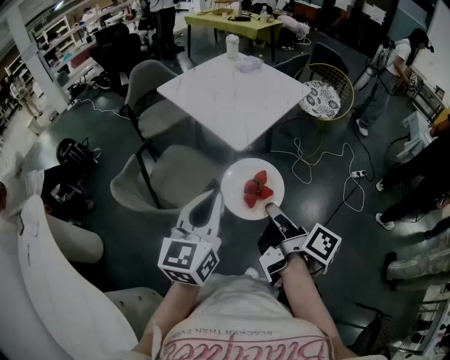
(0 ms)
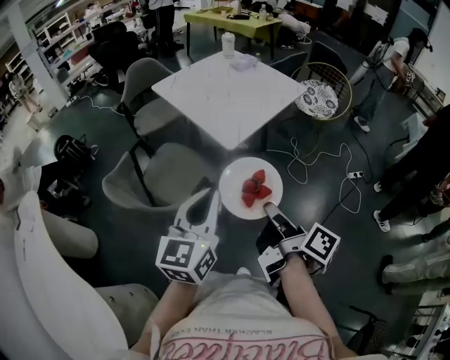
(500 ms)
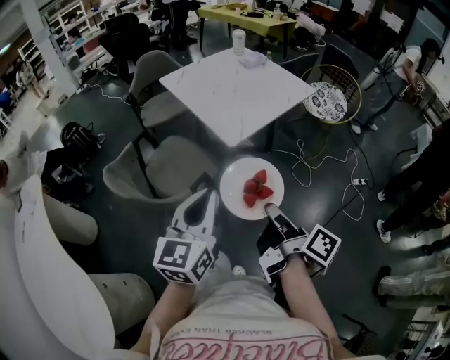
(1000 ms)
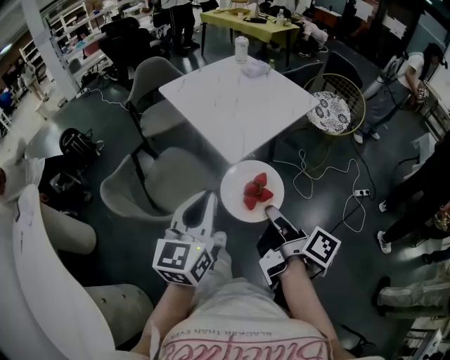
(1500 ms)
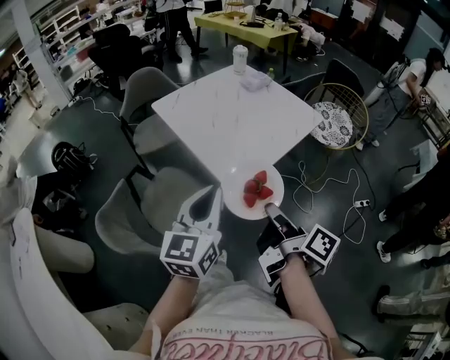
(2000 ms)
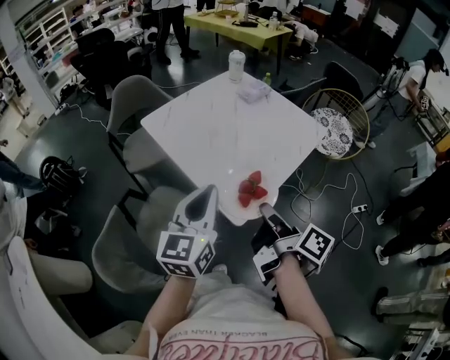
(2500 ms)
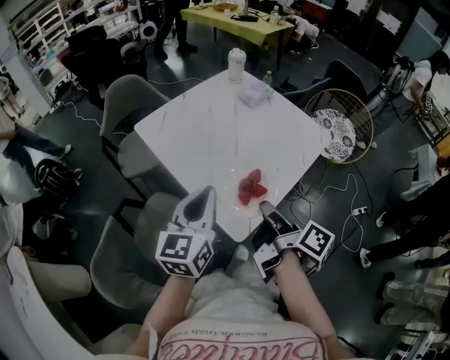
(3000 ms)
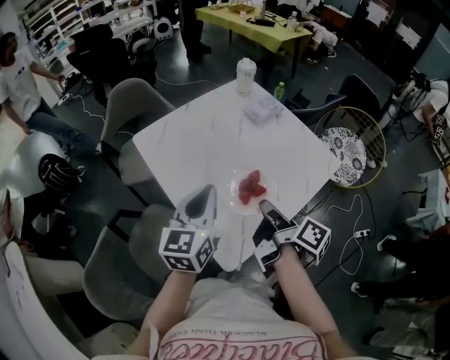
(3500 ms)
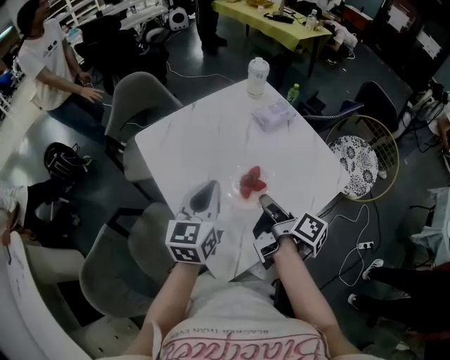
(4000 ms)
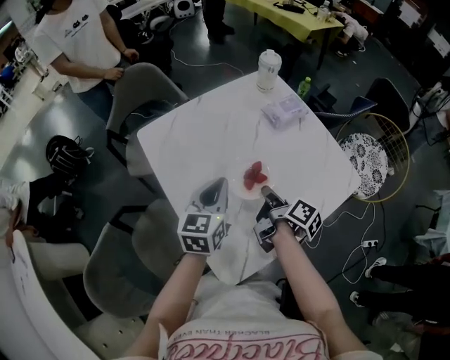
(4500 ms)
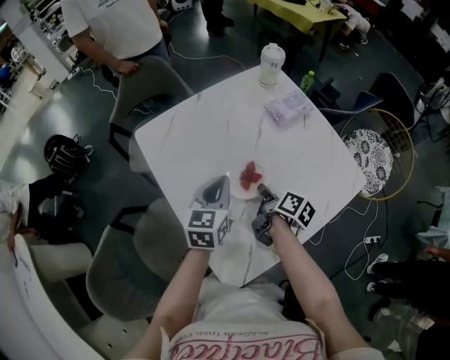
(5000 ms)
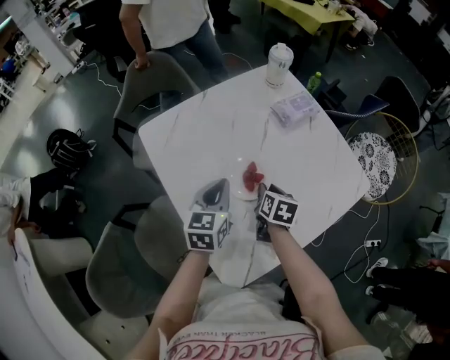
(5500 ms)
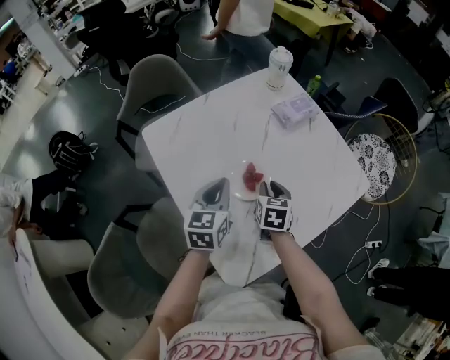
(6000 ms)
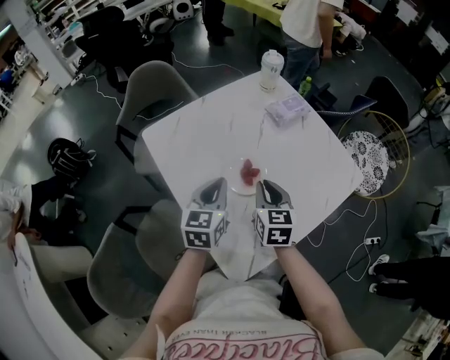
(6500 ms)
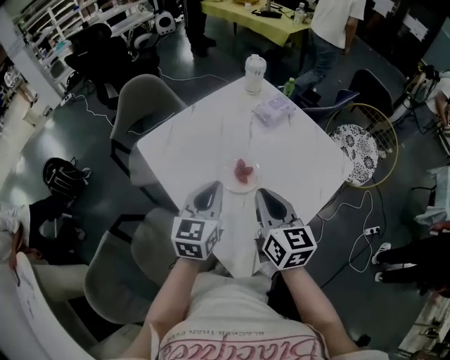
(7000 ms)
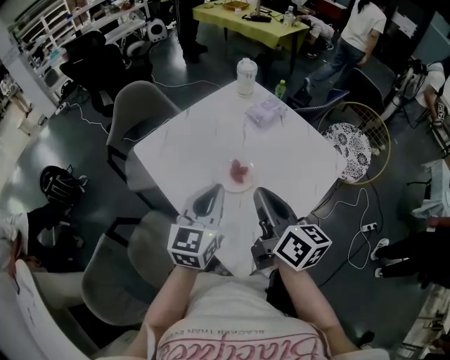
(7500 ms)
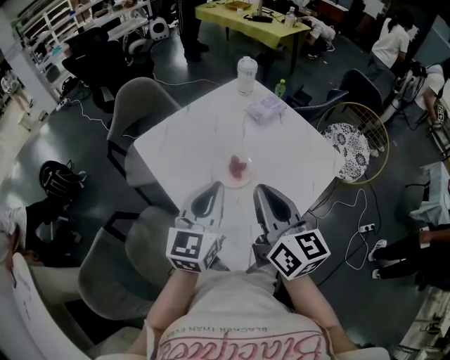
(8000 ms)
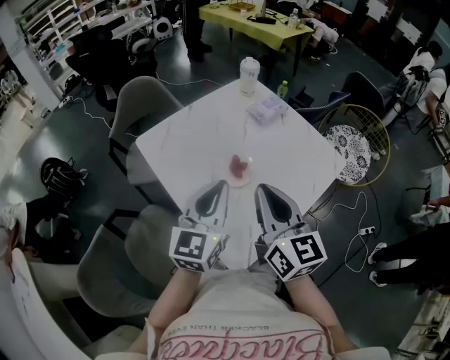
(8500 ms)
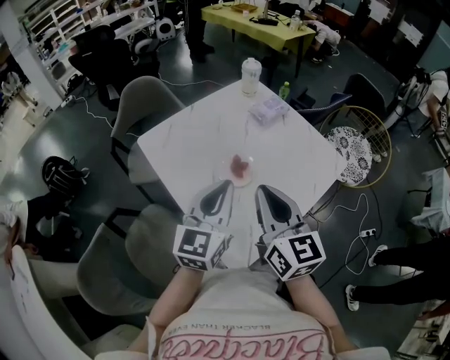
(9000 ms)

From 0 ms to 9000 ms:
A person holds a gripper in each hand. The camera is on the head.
From 0 ms to 2000 ms: Both grippers move forward, some 20 cm.
From 2000 ms to 4500 ms: Both grippers are carried forward, some 50 cm.
From 4500 ms to 7000 ms: The left gripper shifts by roughly 5 cm. The right gripper shifts roughly 15 cm upward, backward and to the left, and twists about 60 degrees counterclockwise, seen from behind.
From 7000 ms to 9000 ms: Both grippers travel together upward and backward, about 10 cm.

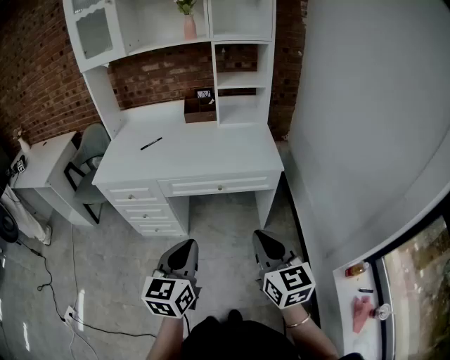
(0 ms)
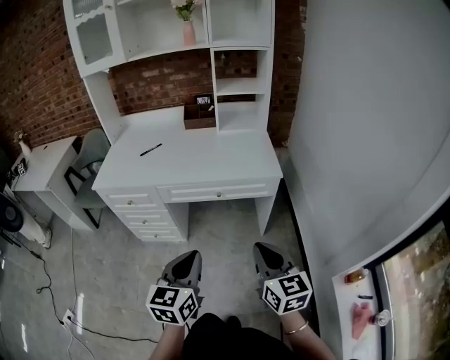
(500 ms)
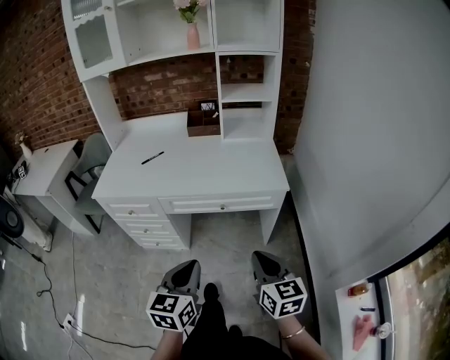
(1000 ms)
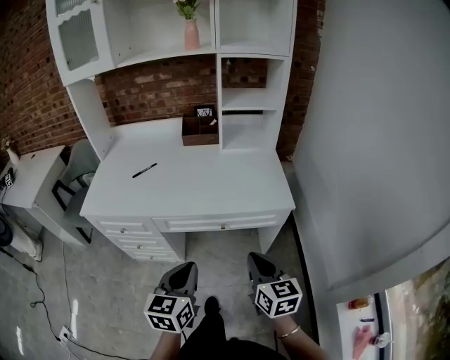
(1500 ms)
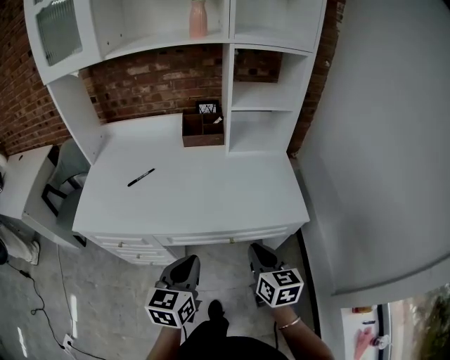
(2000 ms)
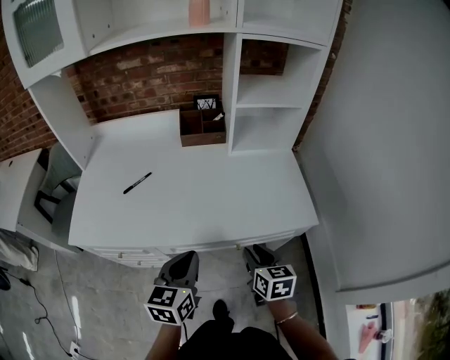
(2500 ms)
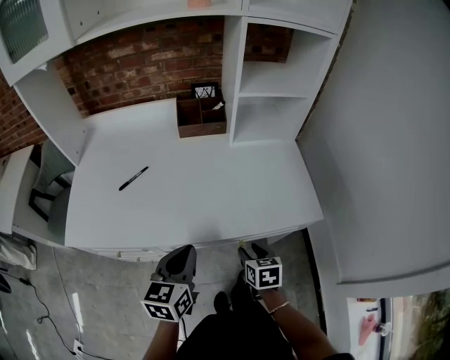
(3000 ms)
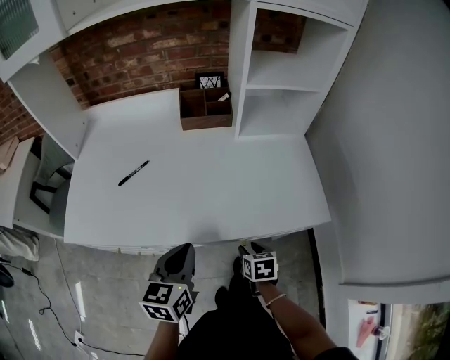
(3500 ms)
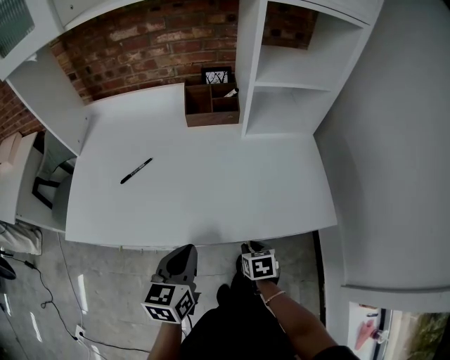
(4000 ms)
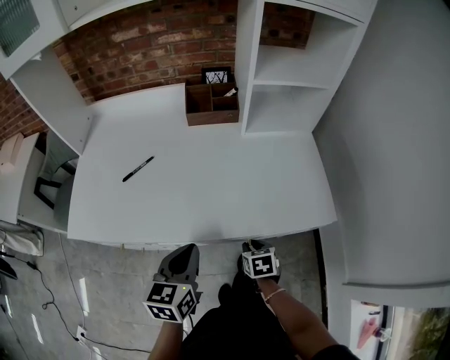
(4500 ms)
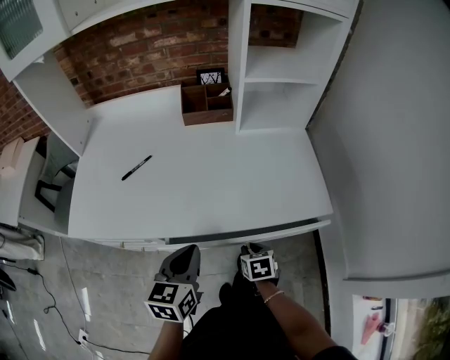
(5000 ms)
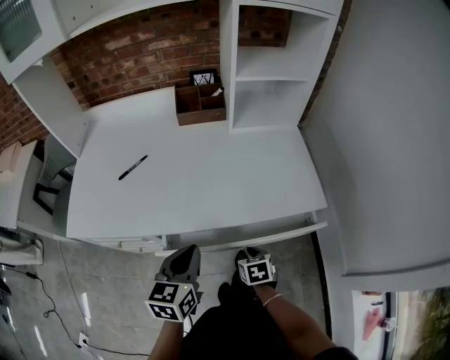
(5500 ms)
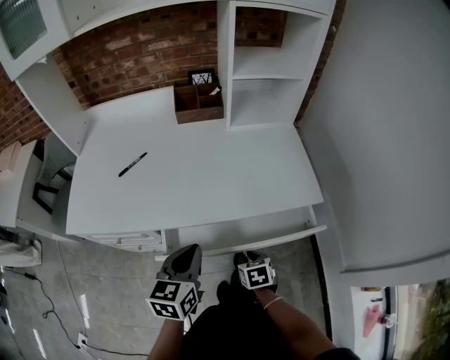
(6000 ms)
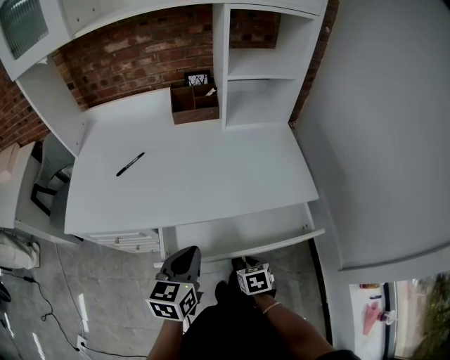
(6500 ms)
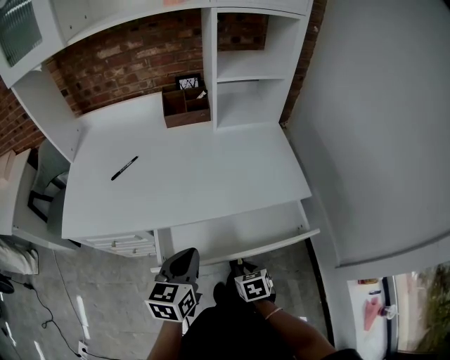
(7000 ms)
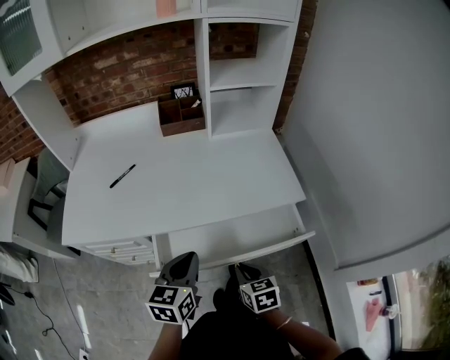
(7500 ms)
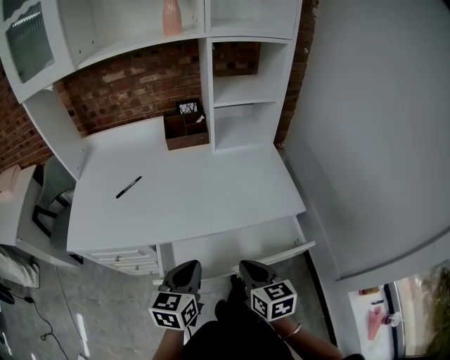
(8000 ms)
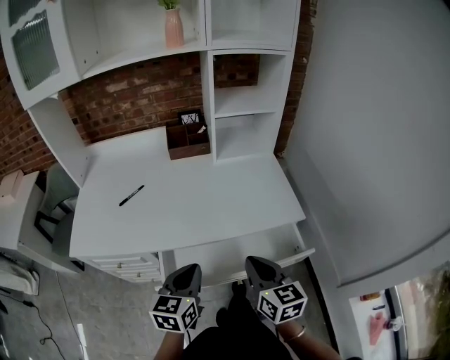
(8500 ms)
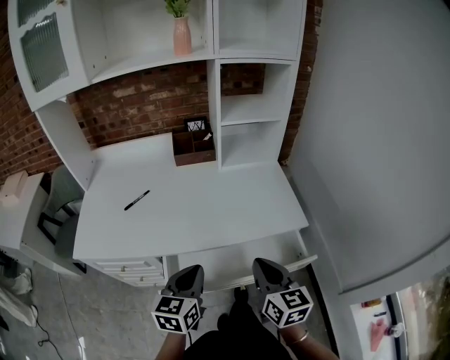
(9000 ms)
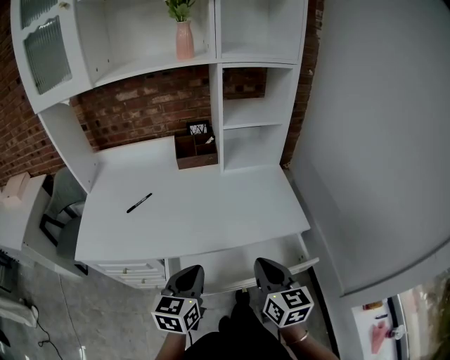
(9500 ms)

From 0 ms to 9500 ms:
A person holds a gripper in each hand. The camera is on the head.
From 0 ms to 2000 ms: Both grippers move forward, roughly 30 cm.
From 2000 ms to 4000 ms: The right gripper is displaced downward and forward by approximately 25 cm, and tips its fingers downward by approximately 40 degrees, while the left gripper travels forward, downward and to the left by some 15 cm.
From 4000 ms to 5500 ms: The two grippers go approximately 5 cm backward.
From 5500 ms to 7500 ms: The left gripper moves approximately 5 cm. The right gripper heads upward and backward, covering approximately 15 cm.
From 7500 ms to 9500 ms: The right gripper shifts about 20 cm upward, and points its fingers some 30 degrees further upward.

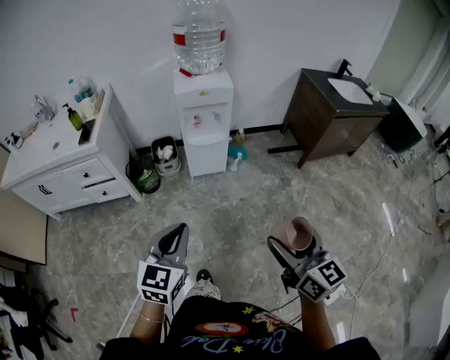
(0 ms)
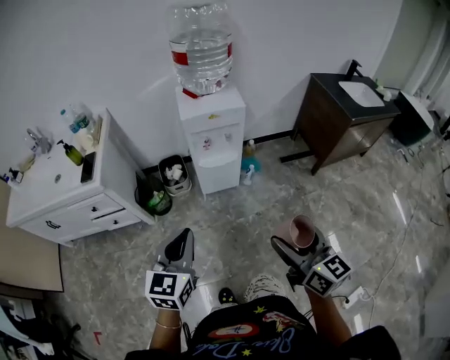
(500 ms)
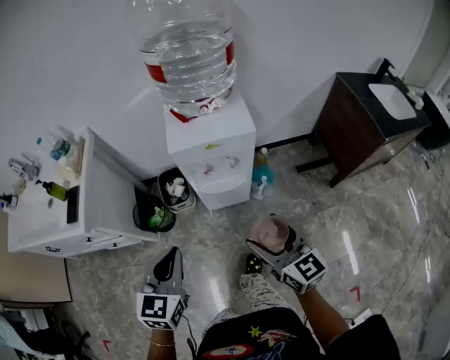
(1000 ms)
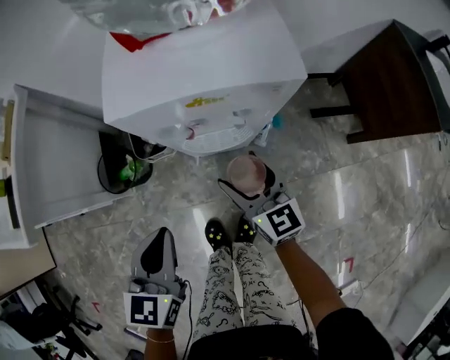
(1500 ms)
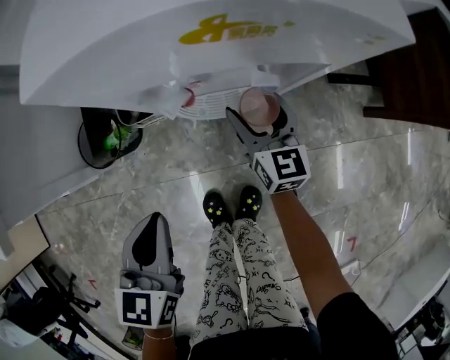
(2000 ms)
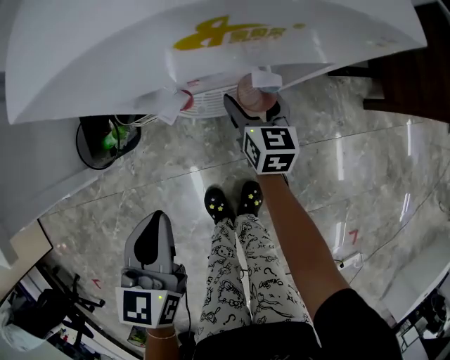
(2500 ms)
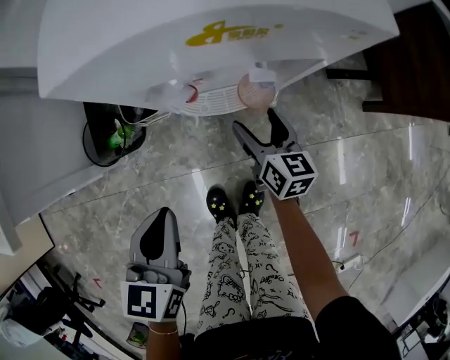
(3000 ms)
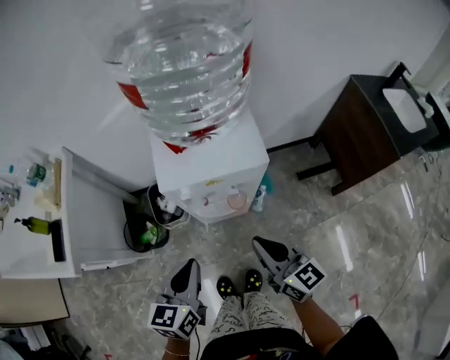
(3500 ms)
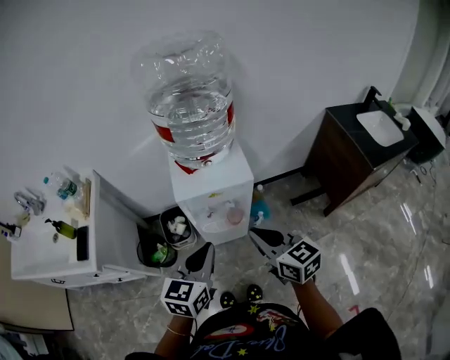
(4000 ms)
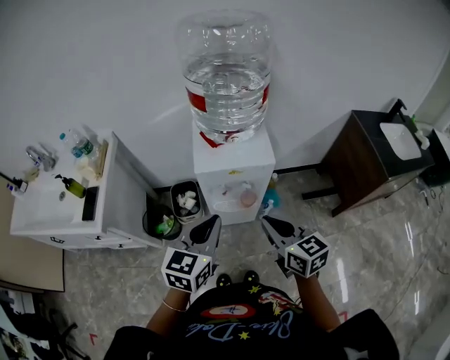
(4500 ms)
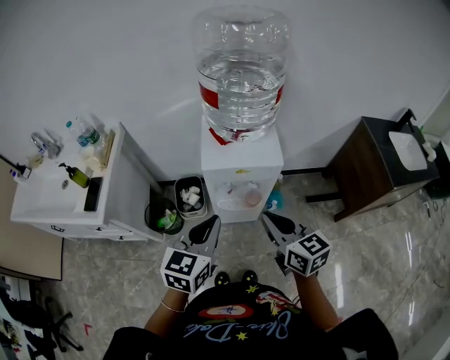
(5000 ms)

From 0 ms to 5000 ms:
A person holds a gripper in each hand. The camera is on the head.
From 0 ms to 2500 ms: Both grippers are carried forward, some 60 cm. The right gripper travels downward by approximately 50 cm, and swivels about 20 degrees. Meanwhile the left gripper is displaced downward by roughly 30 cm, and swivels roughly 30 degrees.
From 2500 ms to 5000 ms: The left gripper travels upward by some 35 cm, and changes its angle by approximately 20 degrees. The right gripper travels upward and backward by about 50 cm, turns by about 30 degrees, and closes.

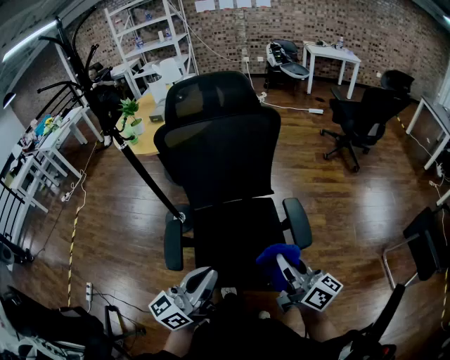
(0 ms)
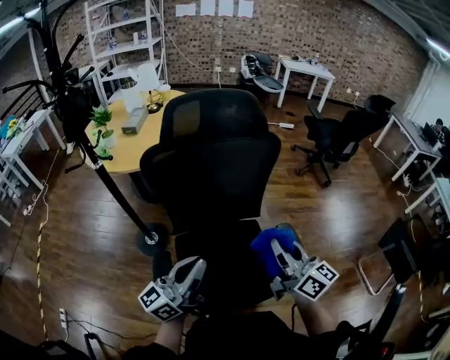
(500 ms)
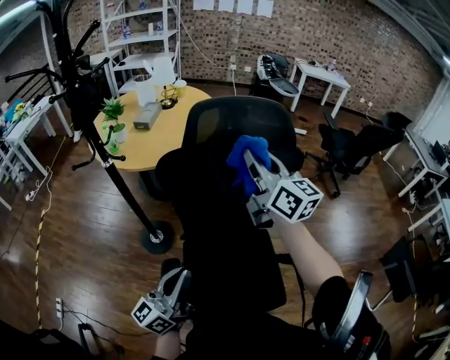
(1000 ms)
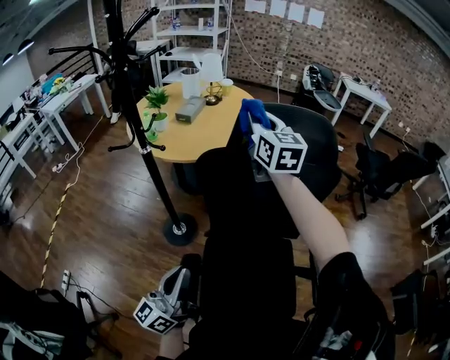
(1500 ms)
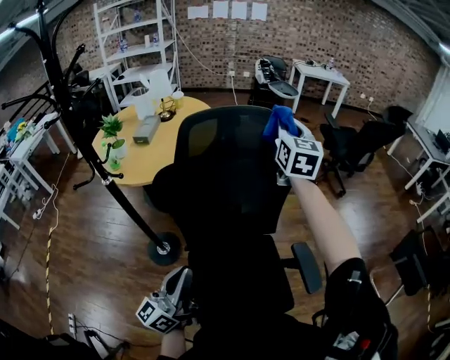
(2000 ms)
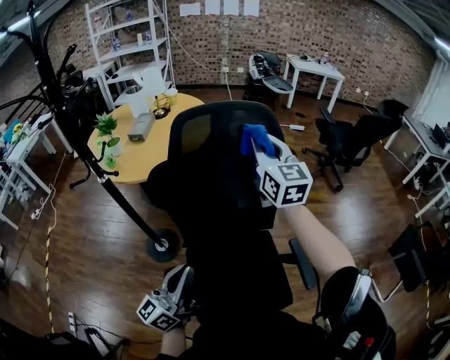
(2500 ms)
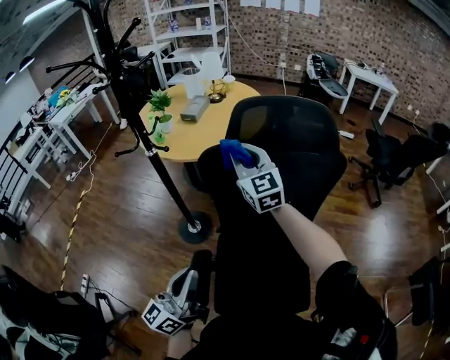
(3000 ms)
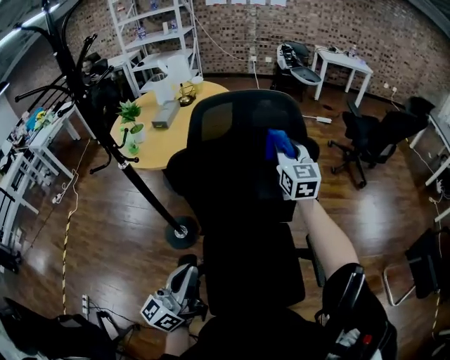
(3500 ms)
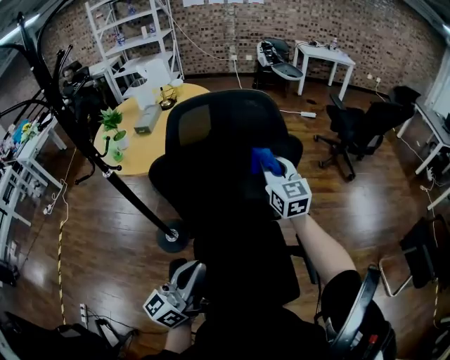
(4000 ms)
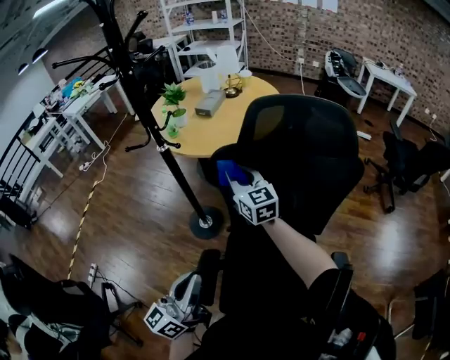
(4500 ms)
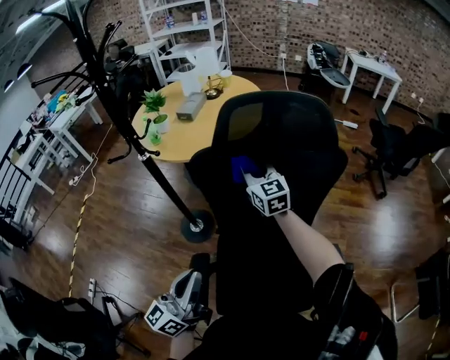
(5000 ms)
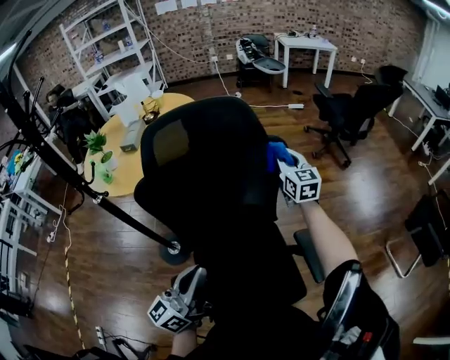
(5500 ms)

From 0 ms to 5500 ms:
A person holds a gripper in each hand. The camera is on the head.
From 0 ms to 2000 ms: The left gripper travels forward and to the left by about 30 cm. The right gripper moves forward and upward, about 50 cm, and rolls counterclockwise, seen from behind, by roughly 50 degrees.
From 2000 ms to 3500 ms: The right gripper shifts some 10 cm downward.
From 3500 ms to 5500 ms: The left gripper moves some 10 cm.
